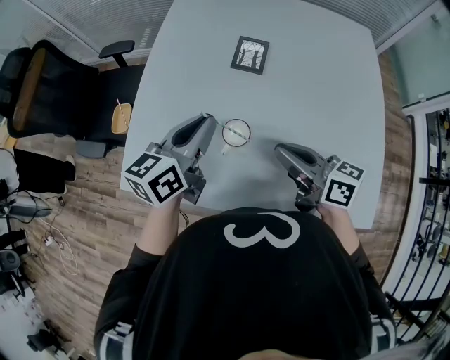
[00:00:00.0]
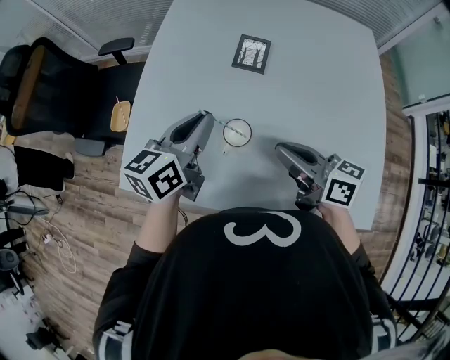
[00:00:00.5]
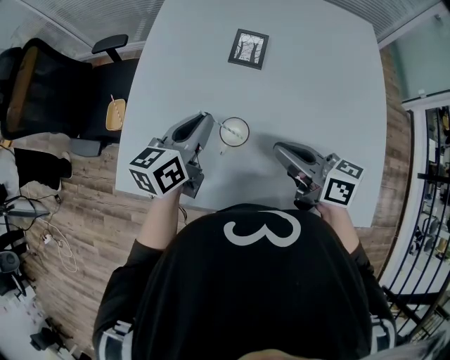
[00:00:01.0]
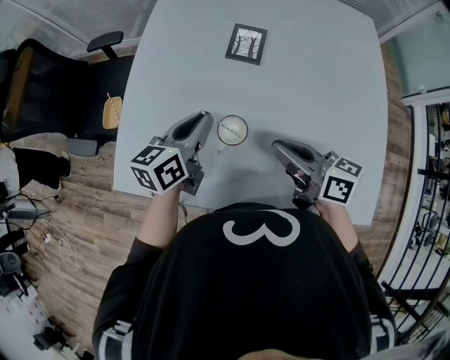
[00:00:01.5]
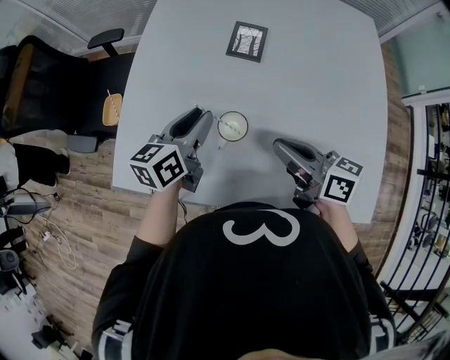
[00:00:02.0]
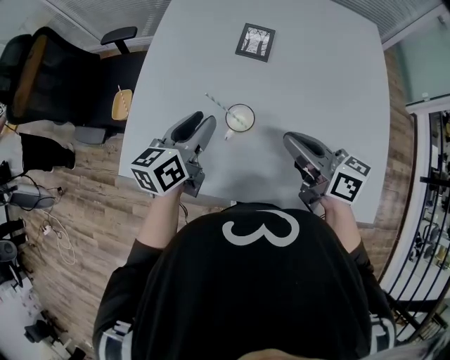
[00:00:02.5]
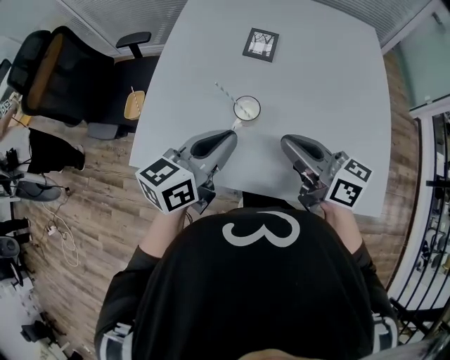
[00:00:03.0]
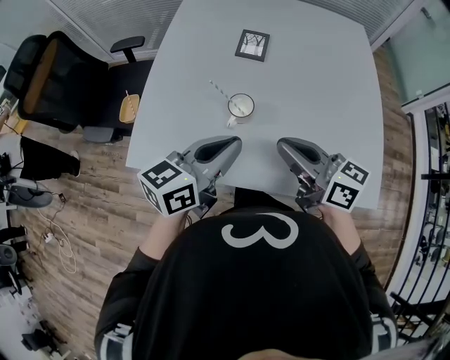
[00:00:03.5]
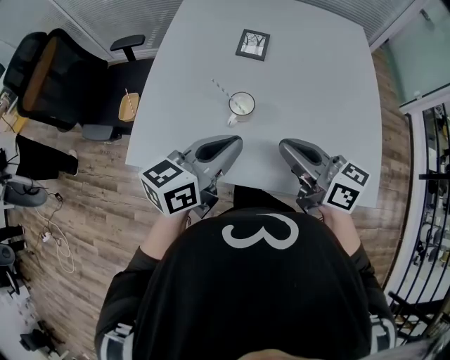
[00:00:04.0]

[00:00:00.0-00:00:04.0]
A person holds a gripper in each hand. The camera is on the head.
00:00:00.0 to 00:00:02.0: The left gripper moves downward, approximately 10 cm.
00:00:02.0 to 00:00:04.0: The right gripper shifts some 10 cm backward and upward; the left gripper moves backward and upward, roughly 20 cm, and closes its fingers.

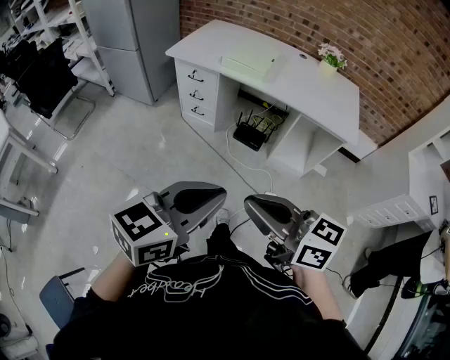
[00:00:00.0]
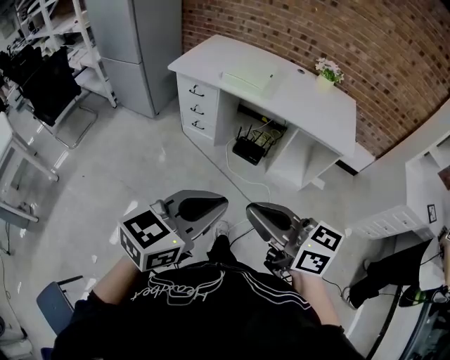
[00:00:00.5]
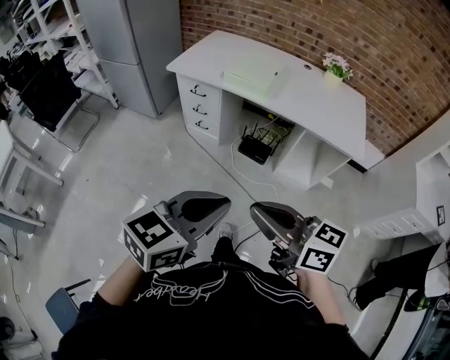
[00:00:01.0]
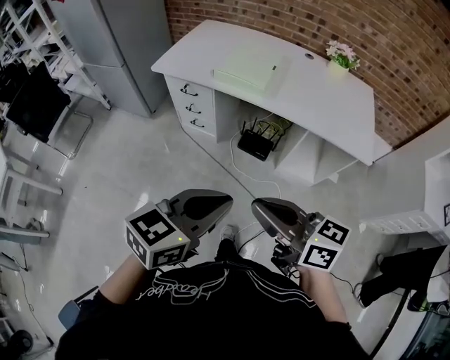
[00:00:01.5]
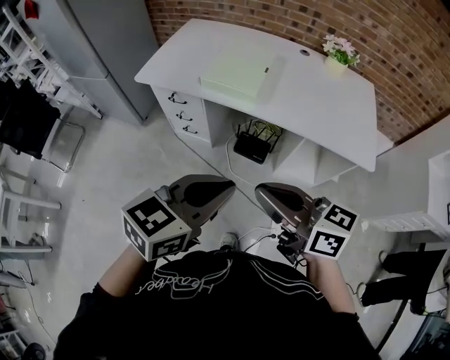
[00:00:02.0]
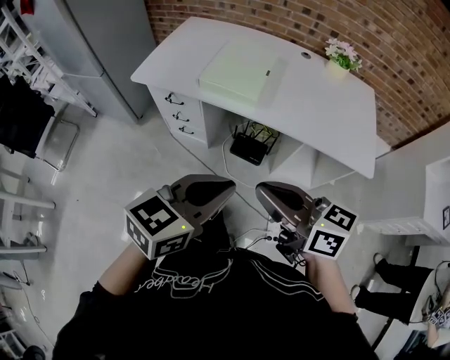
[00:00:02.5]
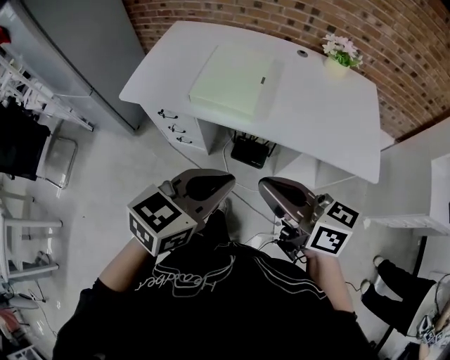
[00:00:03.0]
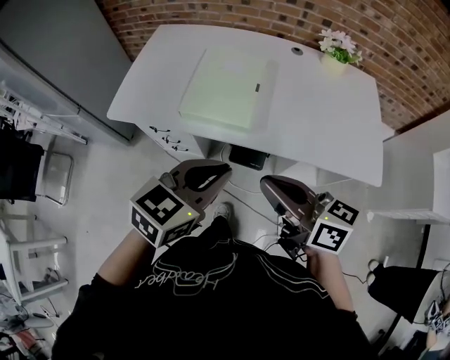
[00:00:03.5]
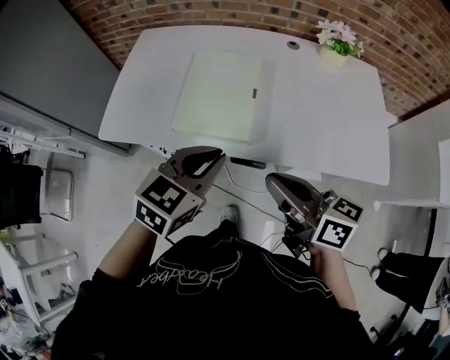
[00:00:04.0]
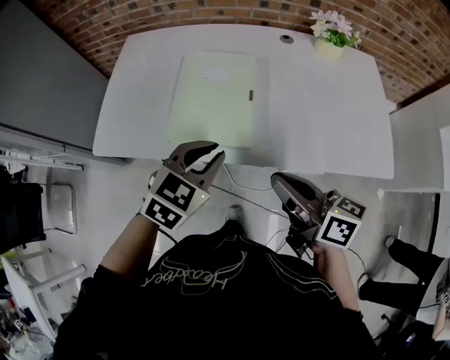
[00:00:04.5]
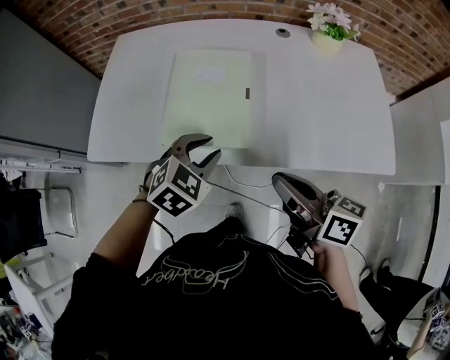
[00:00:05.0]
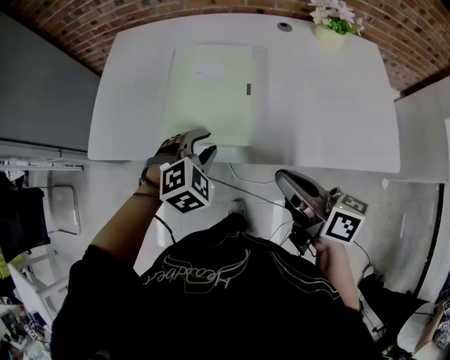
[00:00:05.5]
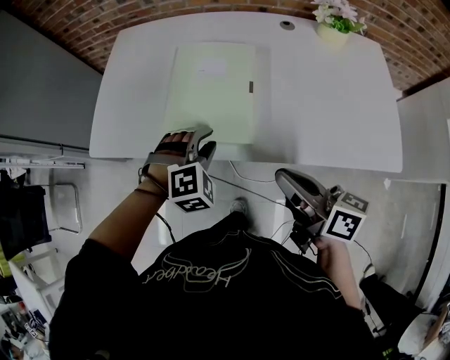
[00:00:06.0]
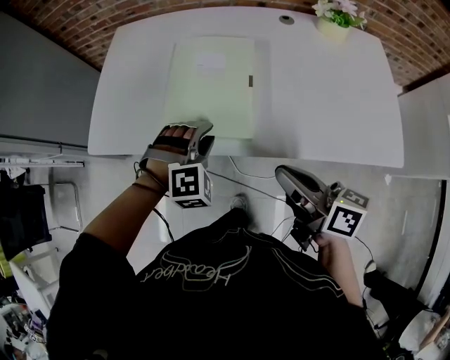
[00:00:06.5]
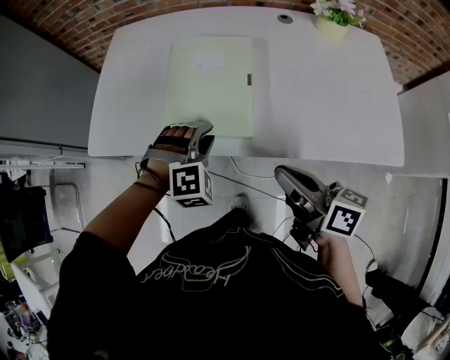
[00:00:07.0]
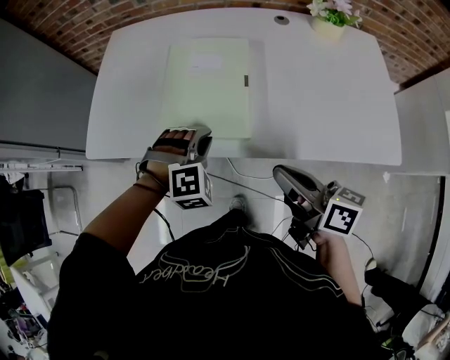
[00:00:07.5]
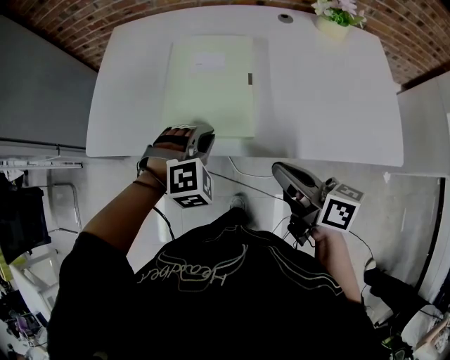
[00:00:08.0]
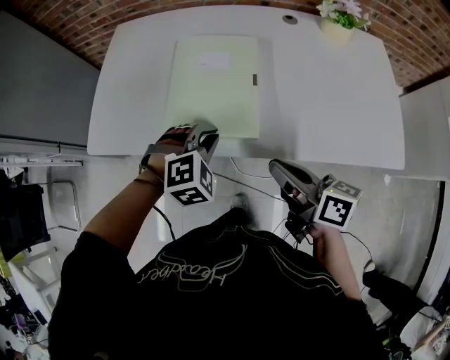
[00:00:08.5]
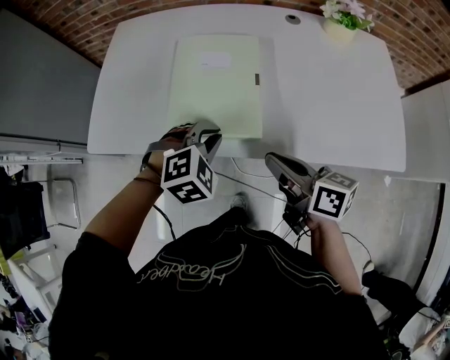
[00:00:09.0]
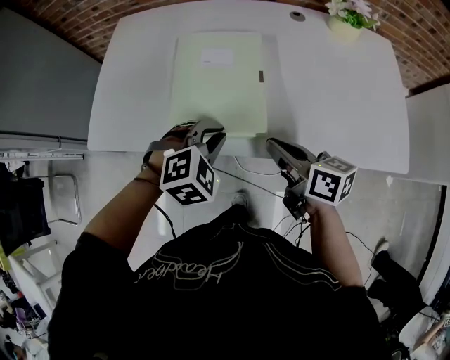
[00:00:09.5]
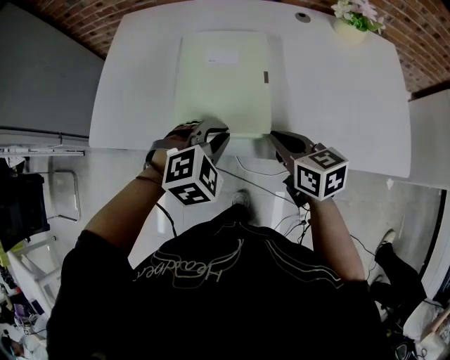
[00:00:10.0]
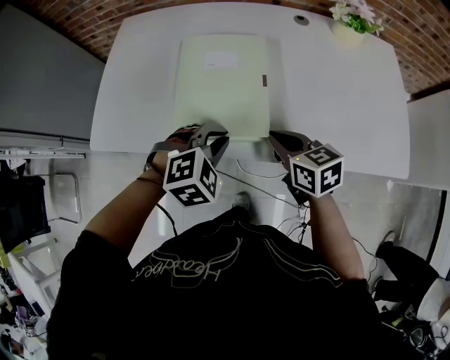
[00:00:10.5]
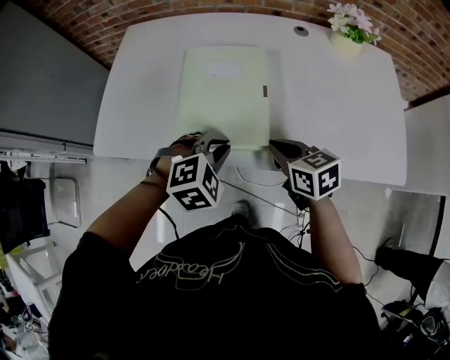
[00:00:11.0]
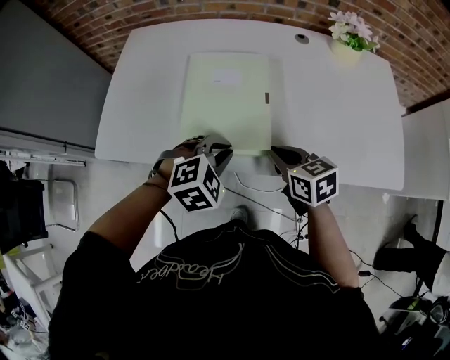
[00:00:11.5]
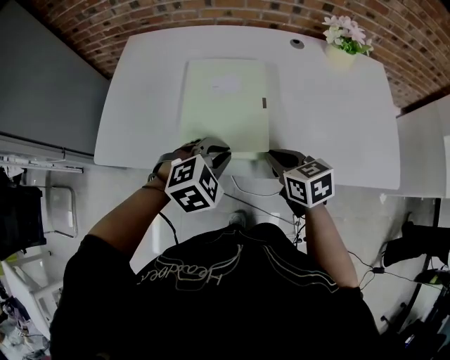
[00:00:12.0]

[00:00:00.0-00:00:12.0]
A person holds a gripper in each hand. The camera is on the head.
00:00:00.0 to 00:00:02.0: Both grippers travel together forward, approximately 25 cm.
00:00:02.0 to 00:00:04.0: Both grippers move forward, about 30 cm. The right gripper swivels approximately 20 degrees.
00:00:04.0 to 00:00:06.0: The left gripper shifts roughly 15 cm downward and forward, twists some 50 degrees clockwise, seen from behind, and opens; the right gripper travels downward by approximately 5 cm.
00:00:06.0 to 00:00:08.0: The grippers stay close to where they were, moving slightly.
00:00:08.0 to 00:00:10.0: The right gripper goes approximately 10 cm forward and downward, and changes its angle by some 30 degrees.
00:00:10.0 to 00:00:12.0: The grippers stay close to where they were, moving slightly.

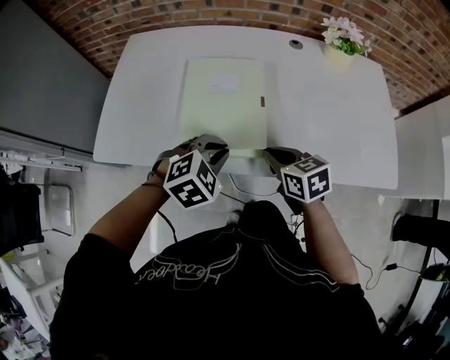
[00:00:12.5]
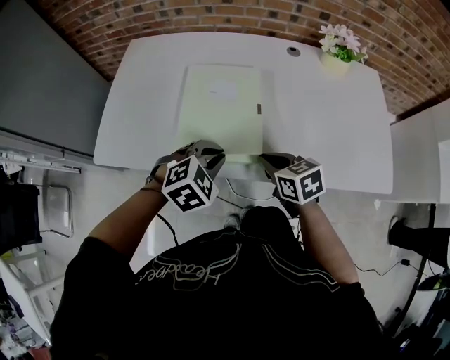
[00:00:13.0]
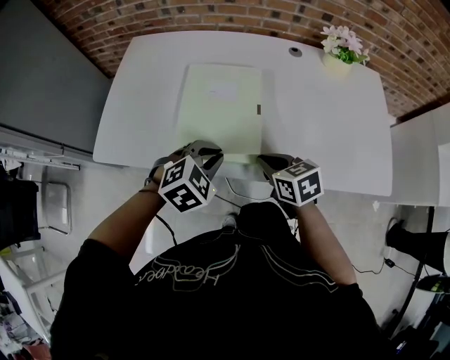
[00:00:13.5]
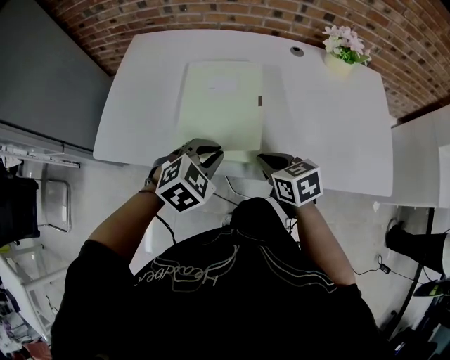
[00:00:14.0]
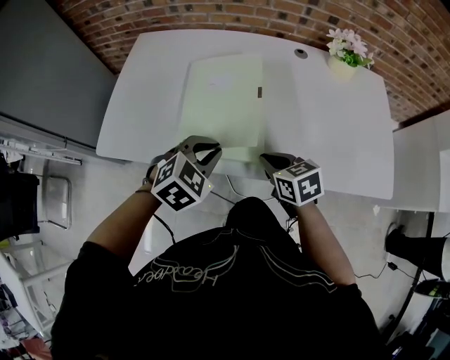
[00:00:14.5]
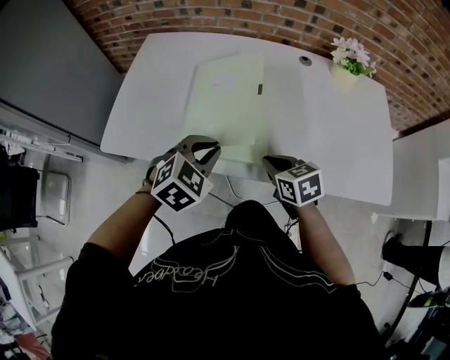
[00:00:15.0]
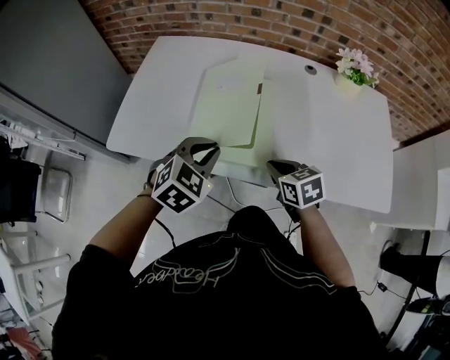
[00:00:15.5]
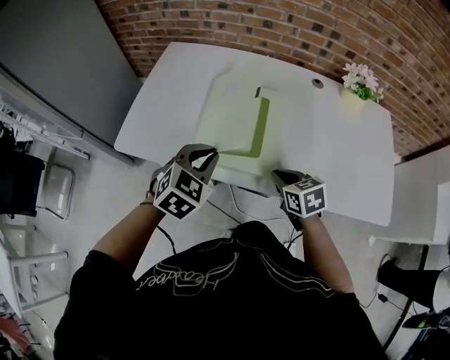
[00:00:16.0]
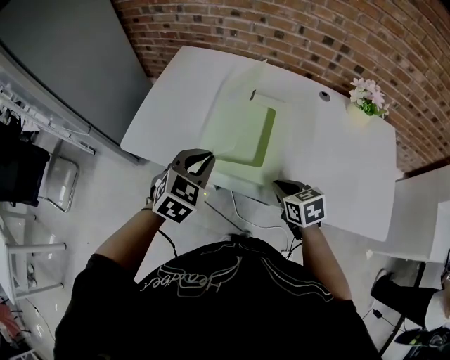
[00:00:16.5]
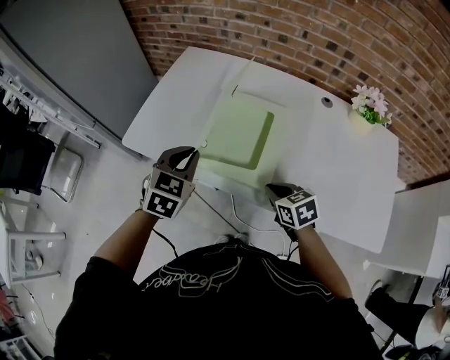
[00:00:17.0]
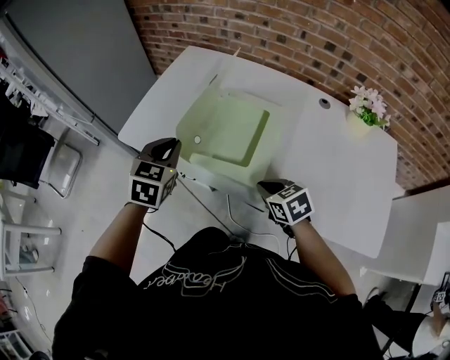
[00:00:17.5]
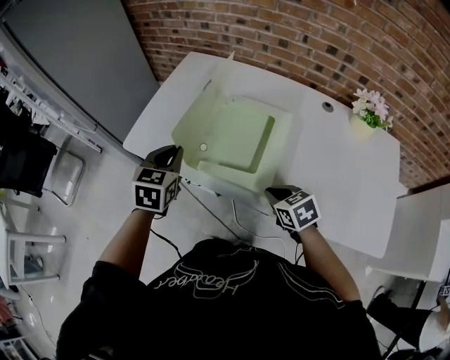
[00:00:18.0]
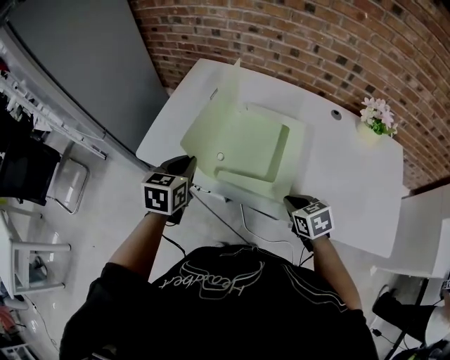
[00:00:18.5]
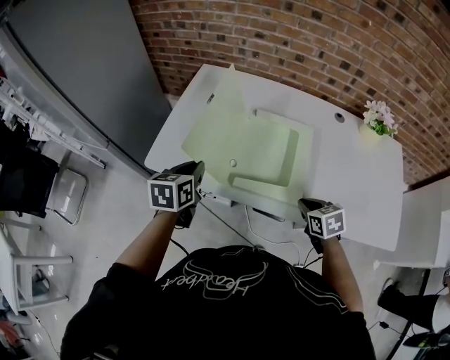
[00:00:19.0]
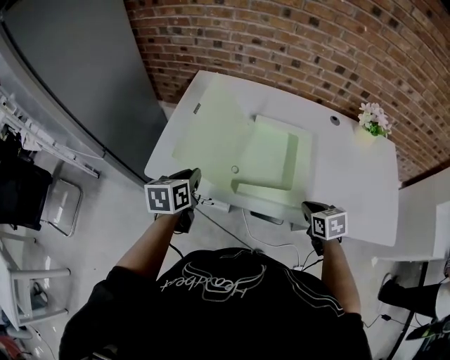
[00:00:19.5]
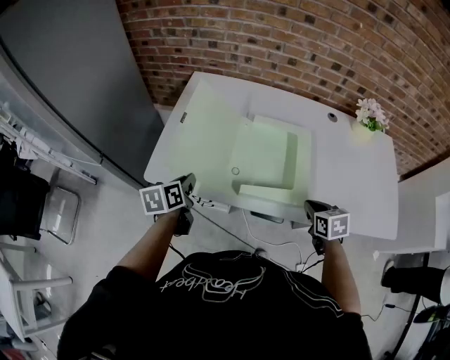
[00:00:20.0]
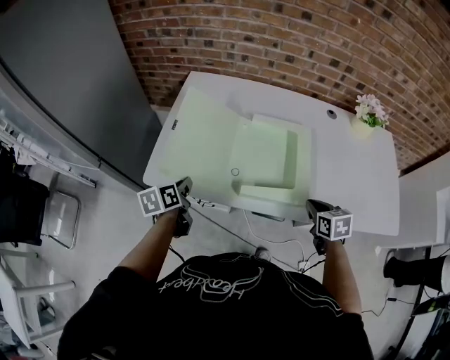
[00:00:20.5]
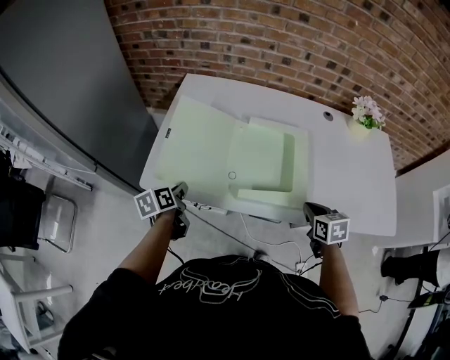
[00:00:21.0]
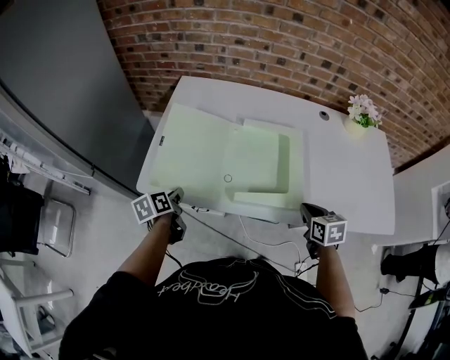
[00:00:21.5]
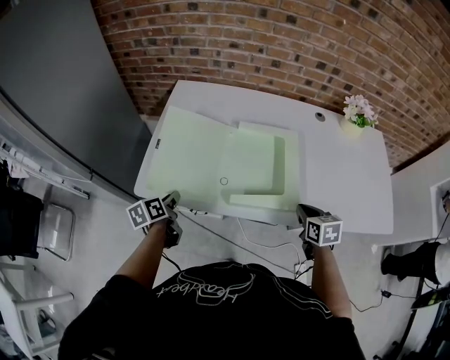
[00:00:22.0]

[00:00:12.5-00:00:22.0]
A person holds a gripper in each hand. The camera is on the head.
00:00:12.5 to 00:00:14.5: There are only small adjustments of the grippers.
00:00:14.5 to 00:00:16.5: The left gripper is displaced to the left by about 10 cm, and turns by roughly 30 degrees.
00:00:16.5 to 00:00:18.0: The left gripper is displaced to the left by some 5 cm, and changes its angle by approximately 30 degrees.
00:00:18.0 to 00:00:20.0: The right gripper turns by roughly 30 degrees; the left gripper ends up about 15 cm from where it was, and turns by some 40 degrees.
00:00:20.0 to 00:00:22.0: The left gripper moves downward, some 5 cm.

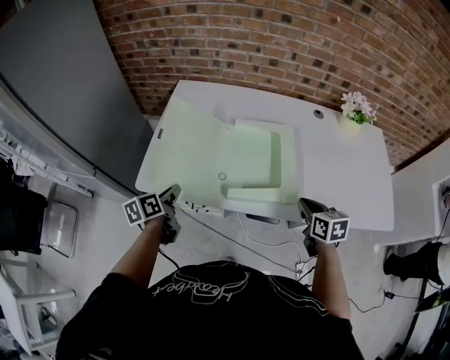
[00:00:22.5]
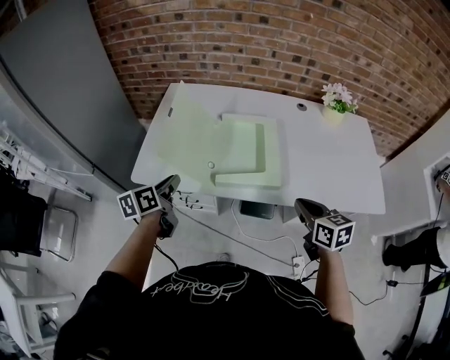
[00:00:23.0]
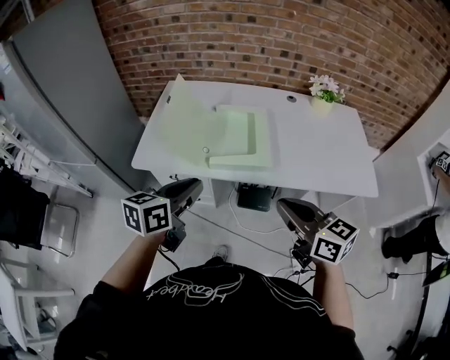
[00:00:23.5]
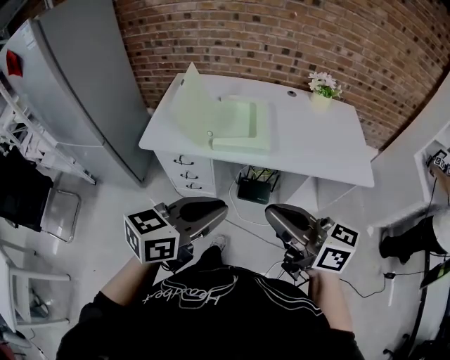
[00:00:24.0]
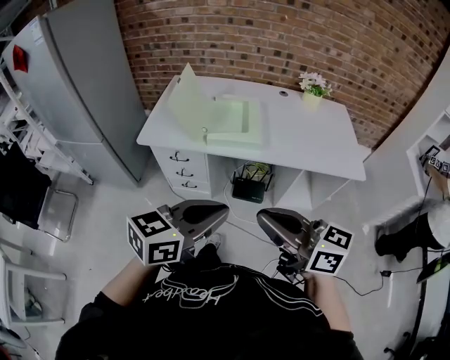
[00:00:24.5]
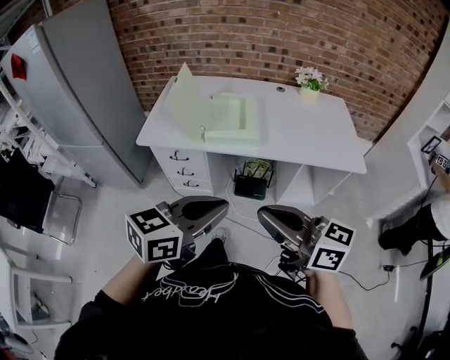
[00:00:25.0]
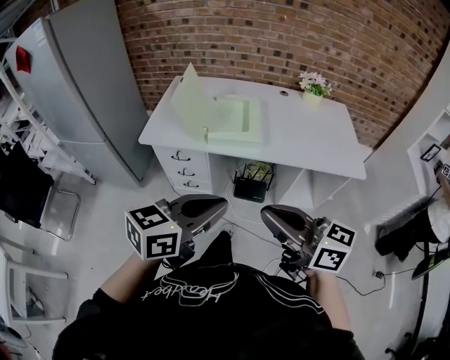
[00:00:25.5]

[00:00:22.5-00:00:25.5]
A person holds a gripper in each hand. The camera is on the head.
00:00:22.5 to 00:00:24.0: The left gripper moves backward, upward and to the right, about 50 cm, and rotates approximately 50 degrees. The right gripper moves backward and upward, approximately 40 cm, and angles its fingers upward, by about 40 degrees.
00:00:24.0 to 00:00:25.5: Both grippers move backward, approximately 5 cm.
